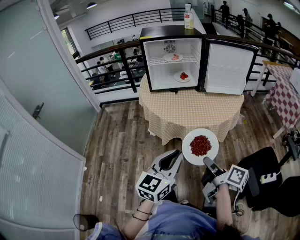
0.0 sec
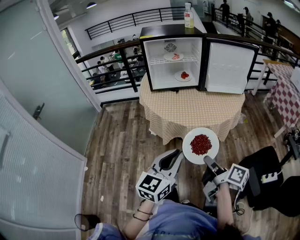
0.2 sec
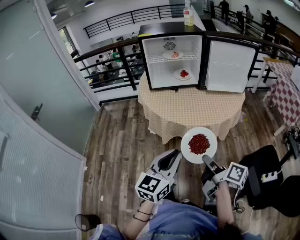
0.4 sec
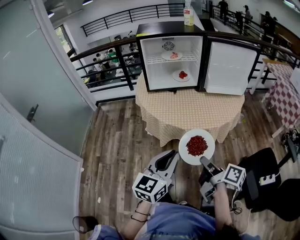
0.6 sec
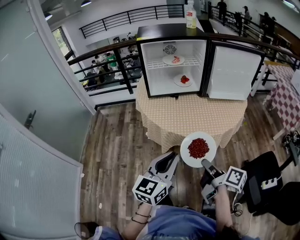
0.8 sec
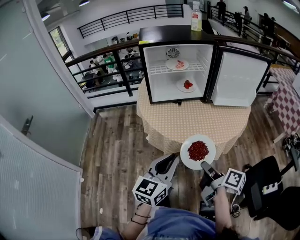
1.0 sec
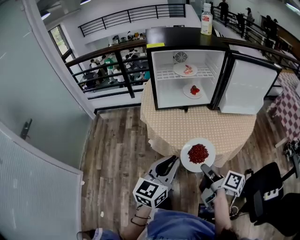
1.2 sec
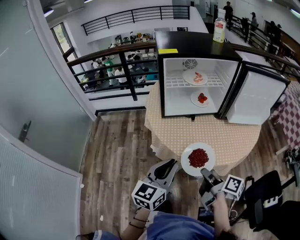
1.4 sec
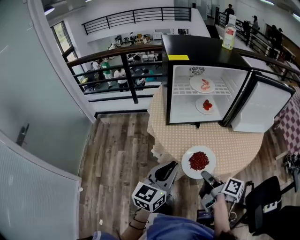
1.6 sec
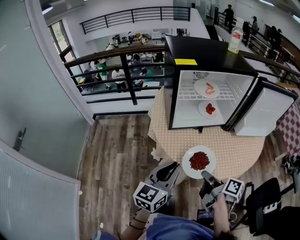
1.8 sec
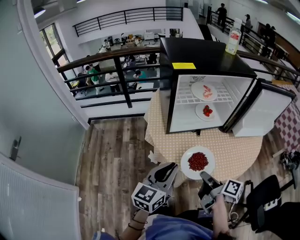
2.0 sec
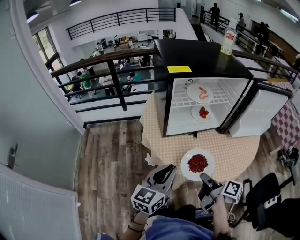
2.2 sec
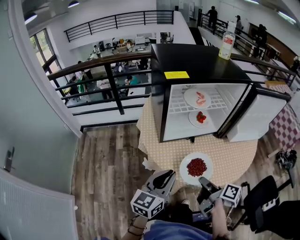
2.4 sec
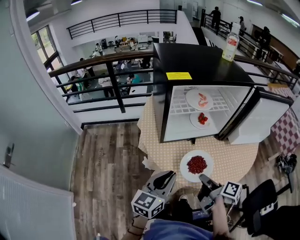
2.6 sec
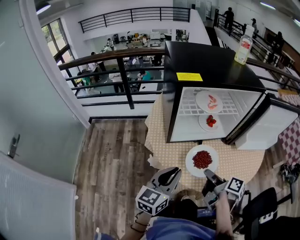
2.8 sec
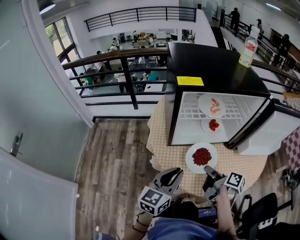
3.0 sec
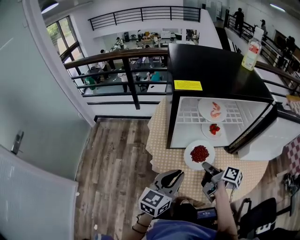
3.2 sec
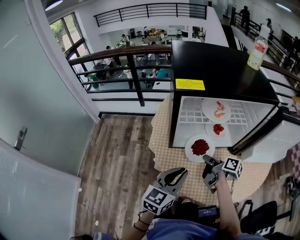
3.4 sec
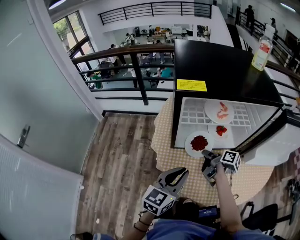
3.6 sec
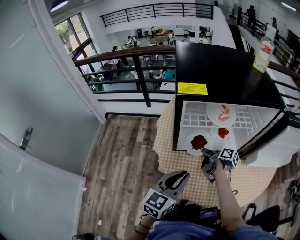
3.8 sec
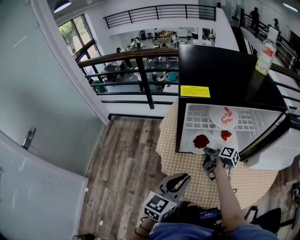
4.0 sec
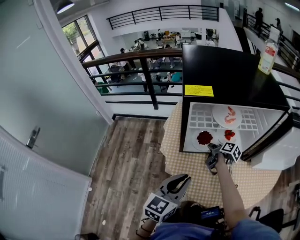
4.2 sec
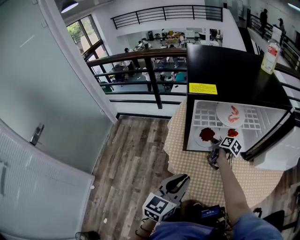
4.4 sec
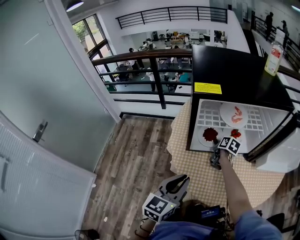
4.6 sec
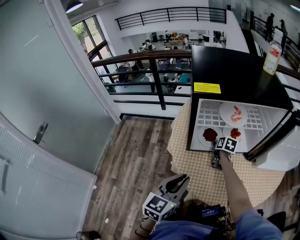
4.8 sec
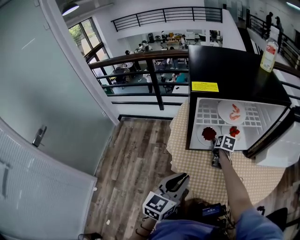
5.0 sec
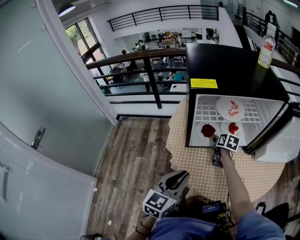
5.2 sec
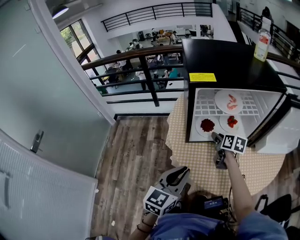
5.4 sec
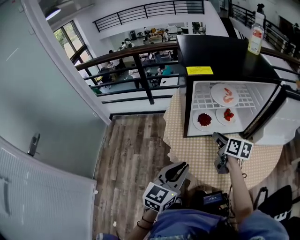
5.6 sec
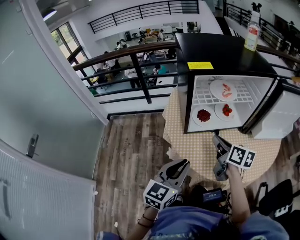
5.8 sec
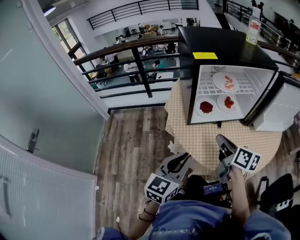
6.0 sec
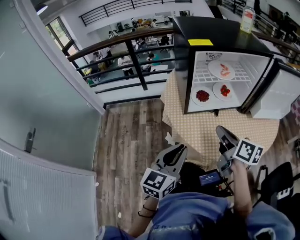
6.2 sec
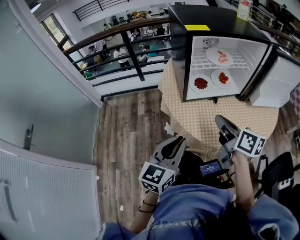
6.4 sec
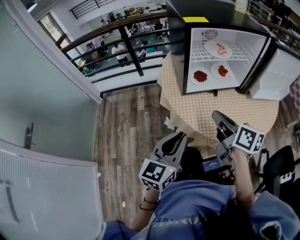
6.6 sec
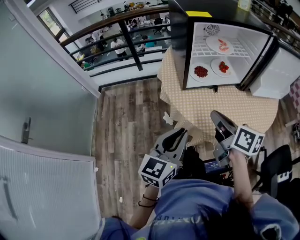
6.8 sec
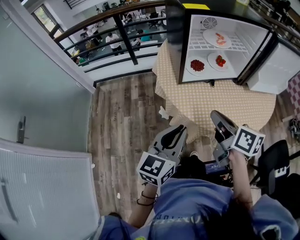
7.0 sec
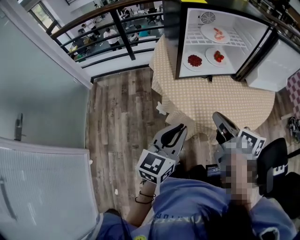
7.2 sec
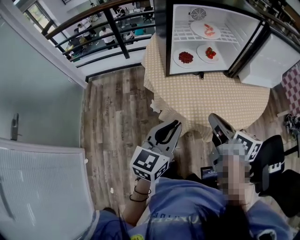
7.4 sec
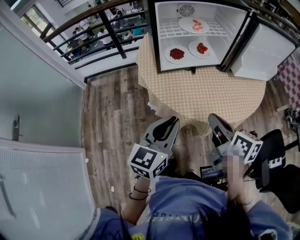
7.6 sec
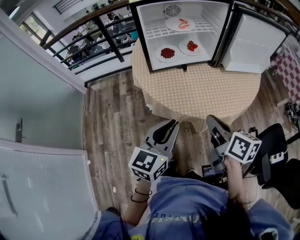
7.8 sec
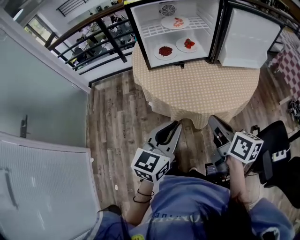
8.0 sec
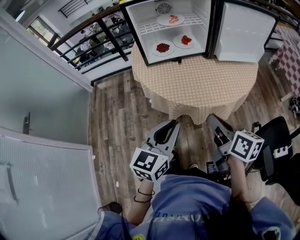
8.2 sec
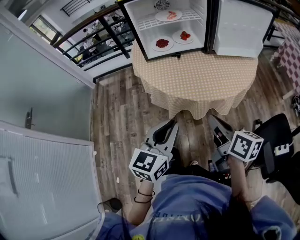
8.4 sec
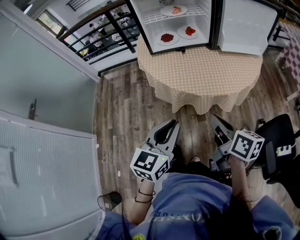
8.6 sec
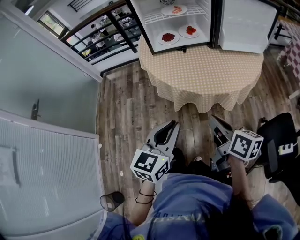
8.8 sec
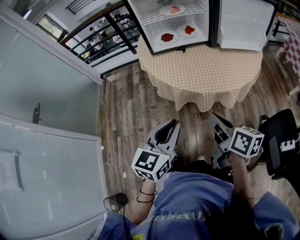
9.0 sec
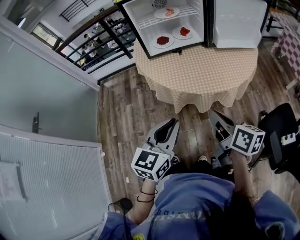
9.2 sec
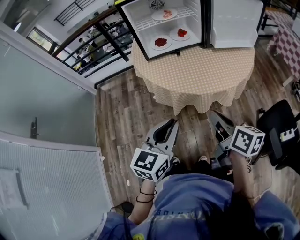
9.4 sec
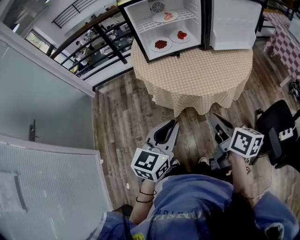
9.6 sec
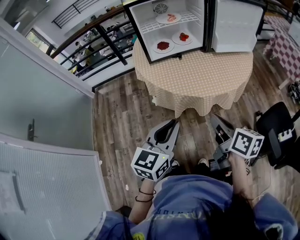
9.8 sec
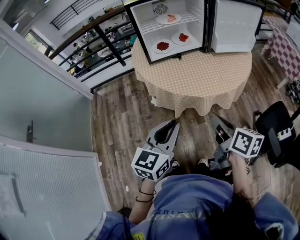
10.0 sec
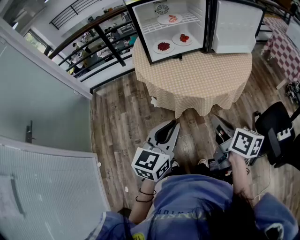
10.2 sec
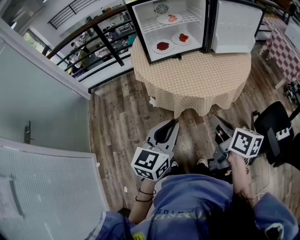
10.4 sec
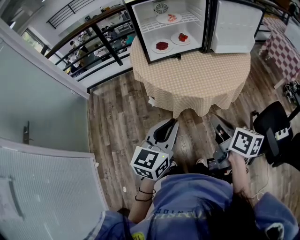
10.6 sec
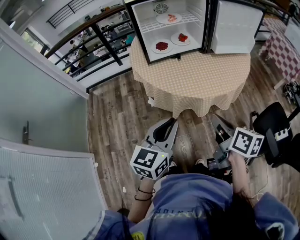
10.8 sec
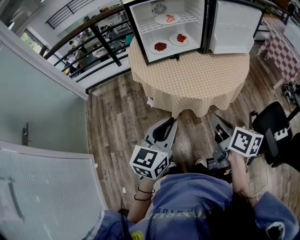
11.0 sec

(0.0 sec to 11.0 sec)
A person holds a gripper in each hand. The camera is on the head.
0.0 sec - 1.6 sec: The grippers both shift forward and to the left by approximately 35 cm.
1.6 sec - 3.2 sec: The right gripper travels forward by some 25 cm. The left gripper moves forward, roughly 15 cm.
3.2 sec - 4.8 sec: The right gripper travels forward and downward by about 20 cm, turns by approximately 40 degrees, and opens.
4.8 sec - 6.2 sec: The right gripper moves backward and upward, some 35 cm, turns by about 30 degrees, and closes its fingers. Meanwhile the left gripper heads backward and to the left, covering roughly 10 cm.
6.2 sec - 7.8 sec: The right gripper moves backward and to the right, about 20 cm; the left gripper travels to the right and backward by some 15 cm.
7.8 sec - 9.4 sec: Both grippers move backward, about 15 cm.
9.4 sec - 11.0 sec: The grippers make only small movements.

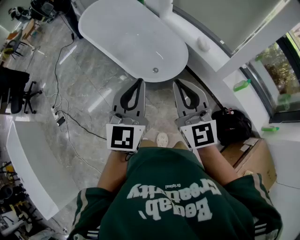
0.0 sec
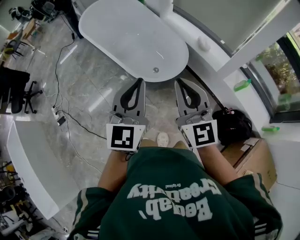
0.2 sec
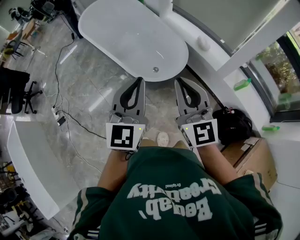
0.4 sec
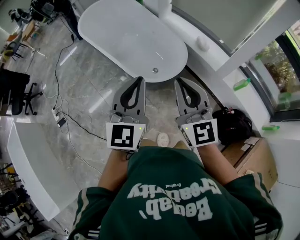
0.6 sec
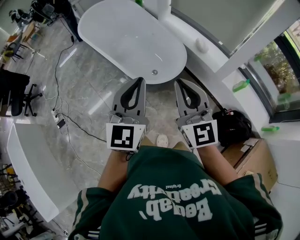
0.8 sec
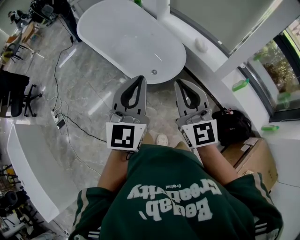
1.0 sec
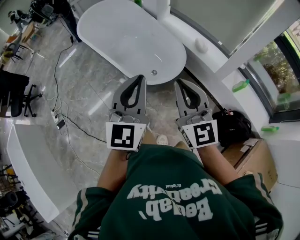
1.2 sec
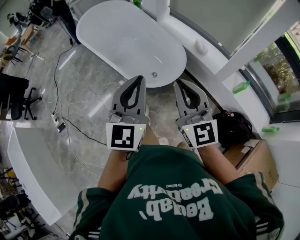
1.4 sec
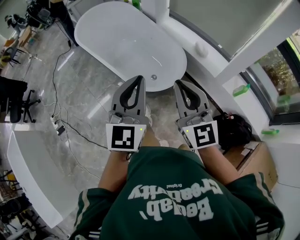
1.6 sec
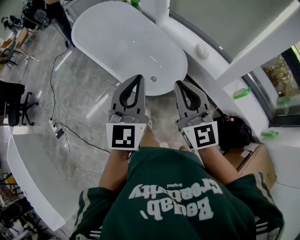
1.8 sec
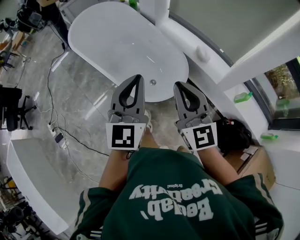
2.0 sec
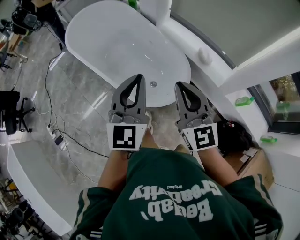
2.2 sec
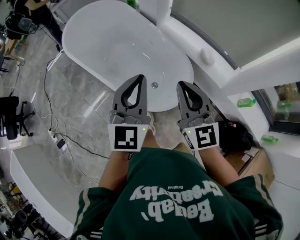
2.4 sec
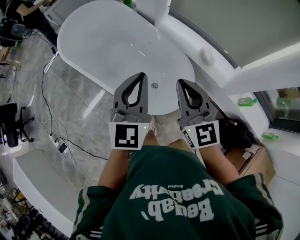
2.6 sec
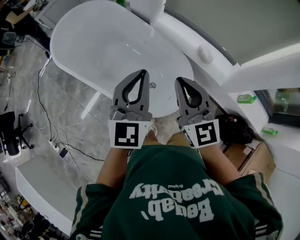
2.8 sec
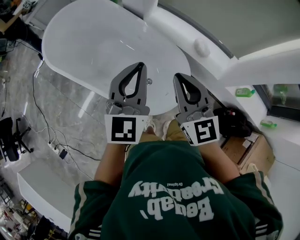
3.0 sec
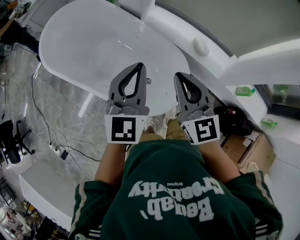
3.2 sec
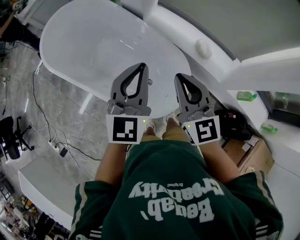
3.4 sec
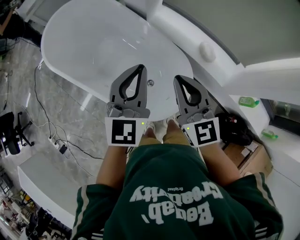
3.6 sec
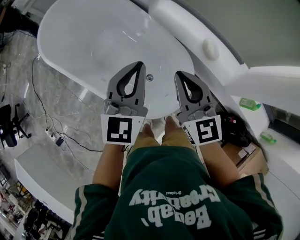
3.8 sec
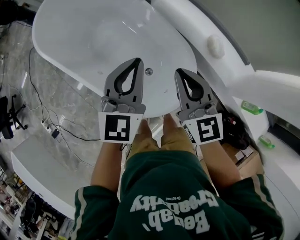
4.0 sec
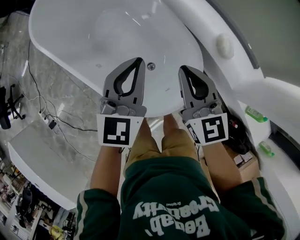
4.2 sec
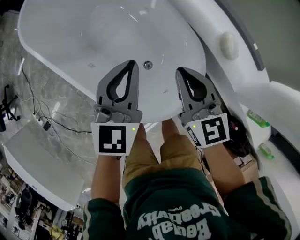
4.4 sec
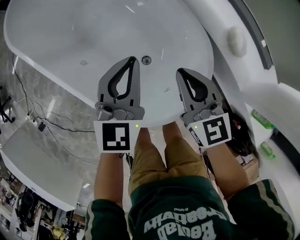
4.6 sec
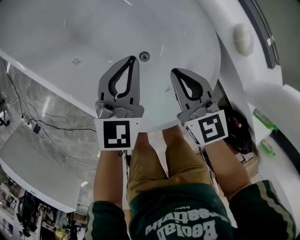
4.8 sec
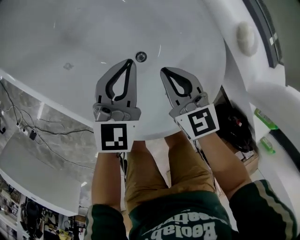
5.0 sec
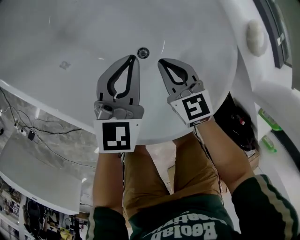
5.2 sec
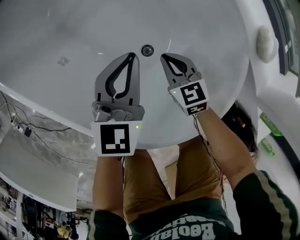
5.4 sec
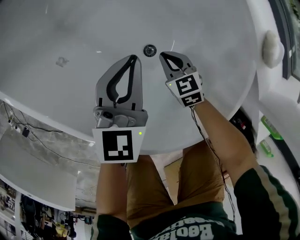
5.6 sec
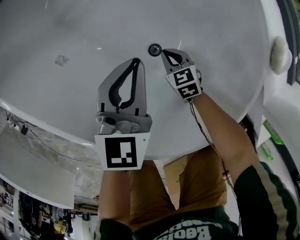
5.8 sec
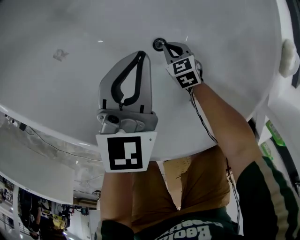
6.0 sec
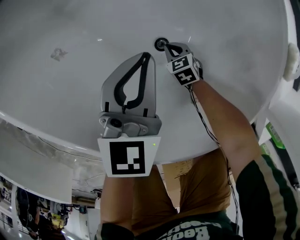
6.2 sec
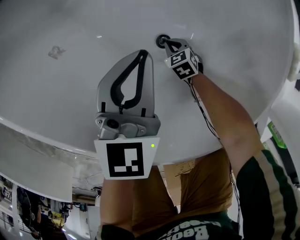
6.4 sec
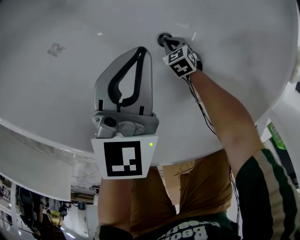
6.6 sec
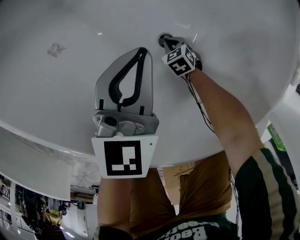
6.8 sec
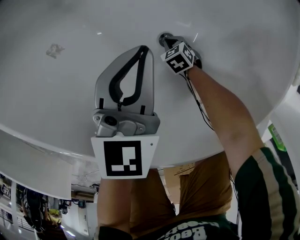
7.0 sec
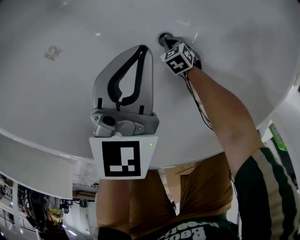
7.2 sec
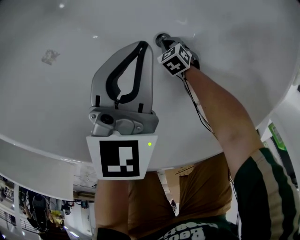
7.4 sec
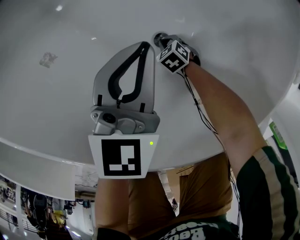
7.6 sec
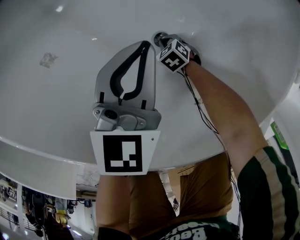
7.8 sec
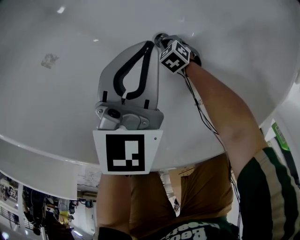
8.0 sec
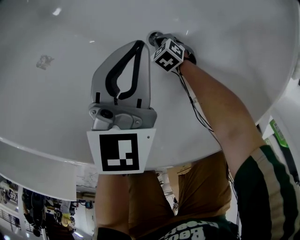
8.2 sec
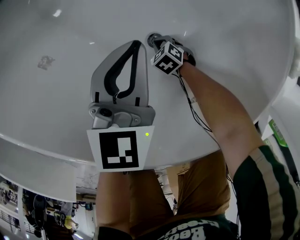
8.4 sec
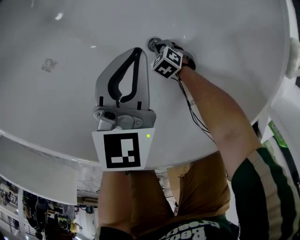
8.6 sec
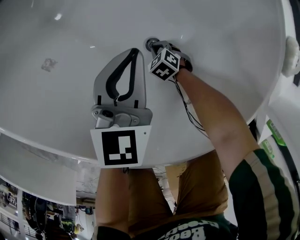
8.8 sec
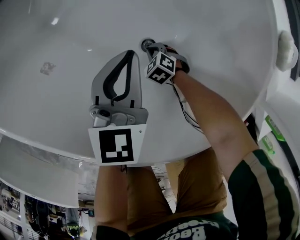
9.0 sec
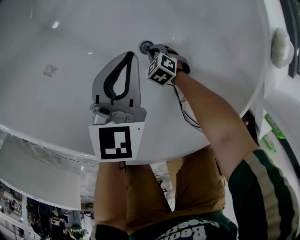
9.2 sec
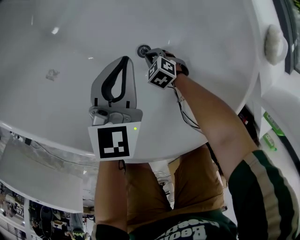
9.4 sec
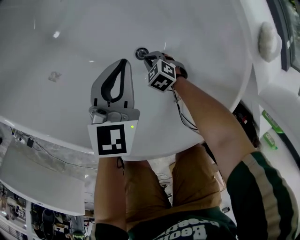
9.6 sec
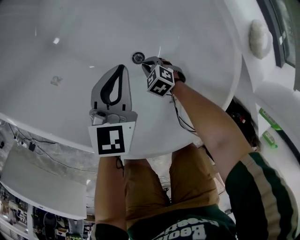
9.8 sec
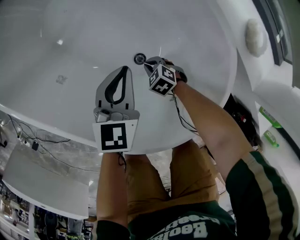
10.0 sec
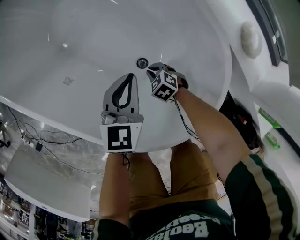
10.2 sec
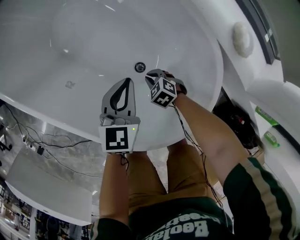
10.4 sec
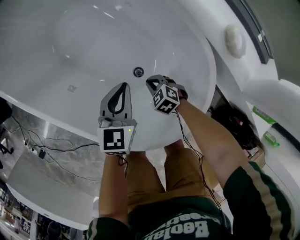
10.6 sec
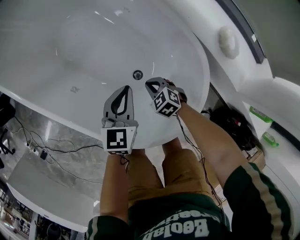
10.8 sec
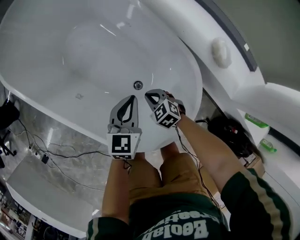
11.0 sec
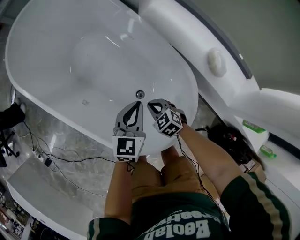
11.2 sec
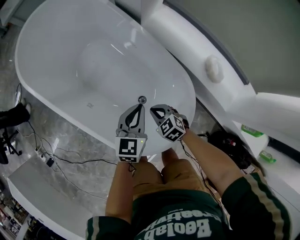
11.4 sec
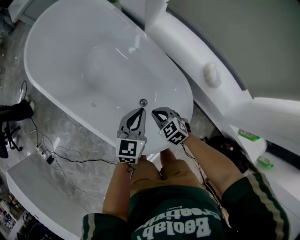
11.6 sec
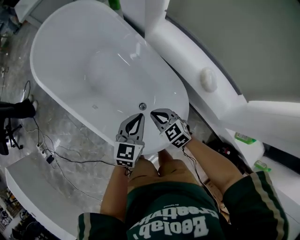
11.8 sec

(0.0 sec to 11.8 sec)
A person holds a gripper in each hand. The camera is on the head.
0.0 sec - 1.4 sec: The grippers move only a little.
1.4 sec - 3.0 sec: Both grippers travel together forward, some 35 cm.
3.0 sec - 4.4 sec: Both grippers move downward and forward, roughly 25 cm. The right gripper turns by about 20 degrees.
4.4 sec - 6.0 sec: The left gripper heads downward, covering approximately 35 cm, while the right gripper travels downward by some 60 cm, and angles its fingers downward, by about 50 degrees.
6.0 sec - 7.4 sec: The right gripper shifts about 10 cm downward.
7.4 sec - 8.8 sec: The grippers make only small movements.
8.8 sec - 10.4 sec: The right gripper travels upward by about 20 cm; the left gripper goes roughly 10 cm upward.
10.4 sec - 11.8 sec: The right gripper is displaced upward by about 35 cm, and rotates roughly 30 degrees. Meanwhile the left gripper travels upward by about 20 cm.

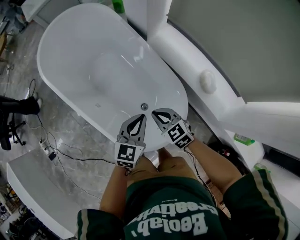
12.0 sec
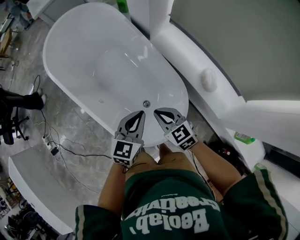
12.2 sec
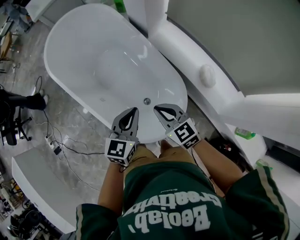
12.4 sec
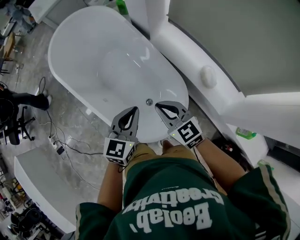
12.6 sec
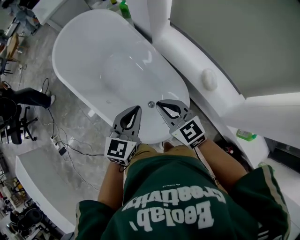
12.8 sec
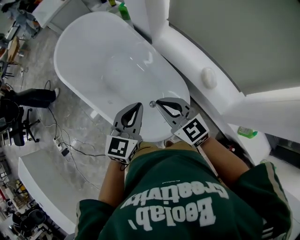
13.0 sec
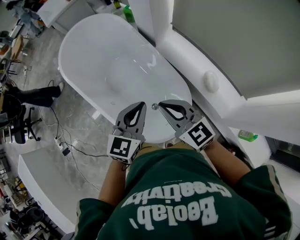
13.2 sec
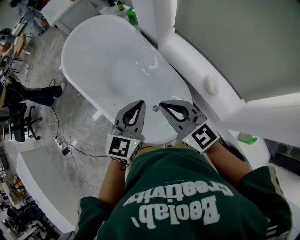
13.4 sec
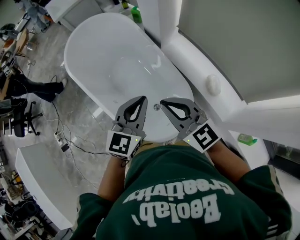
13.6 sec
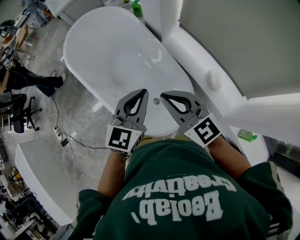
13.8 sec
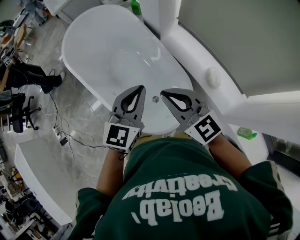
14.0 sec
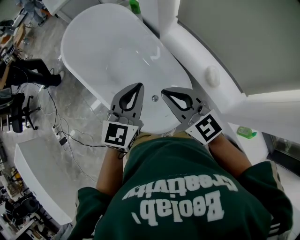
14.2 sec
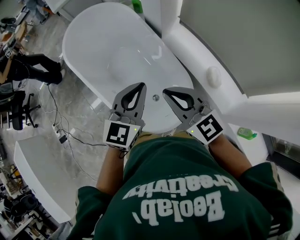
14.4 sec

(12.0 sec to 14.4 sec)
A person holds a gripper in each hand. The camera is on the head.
12.0 sec - 13.2 sec: Both grippers move upward, roughly 20 cm. The right gripper changes its angle by some 20 degrees.
13.2 sec - 14.4 sec: The grippers stay close to where they were, moving slightly.
